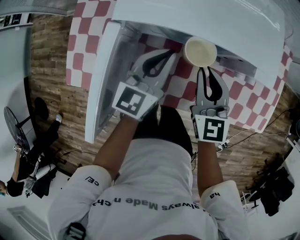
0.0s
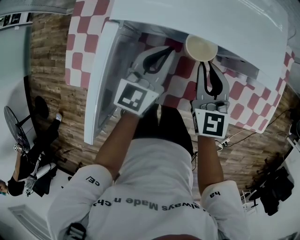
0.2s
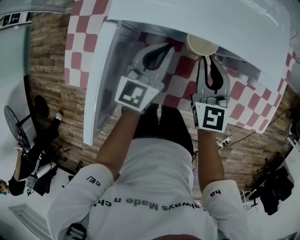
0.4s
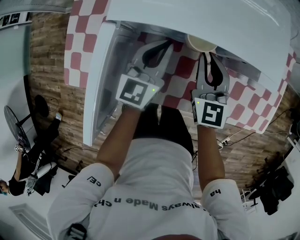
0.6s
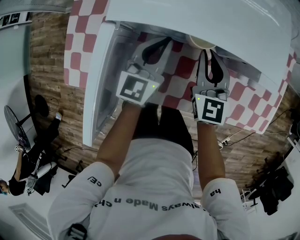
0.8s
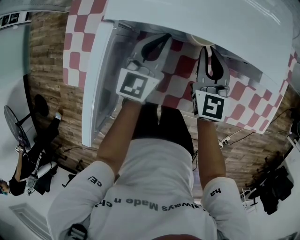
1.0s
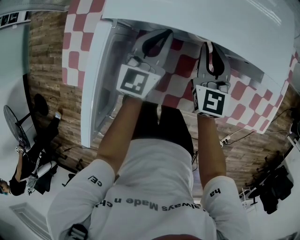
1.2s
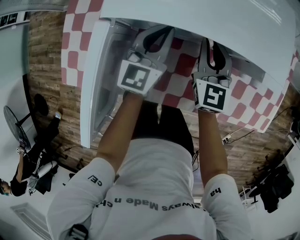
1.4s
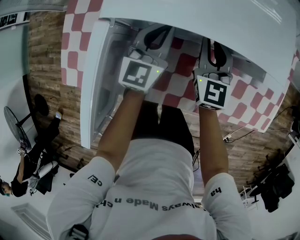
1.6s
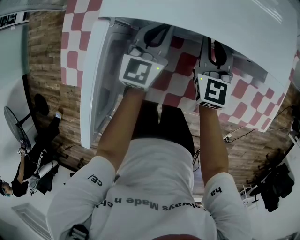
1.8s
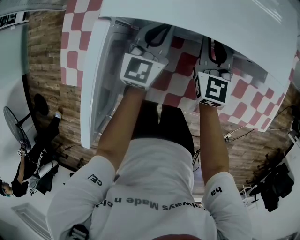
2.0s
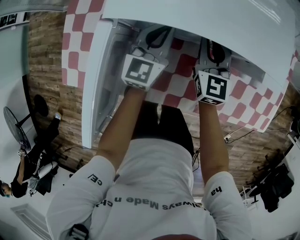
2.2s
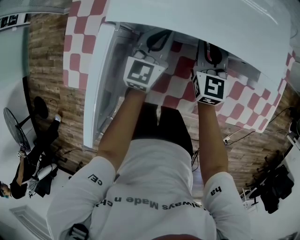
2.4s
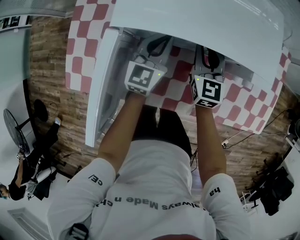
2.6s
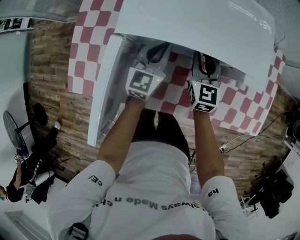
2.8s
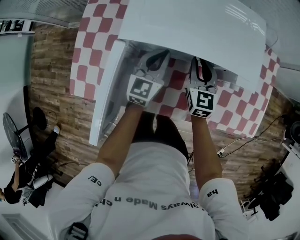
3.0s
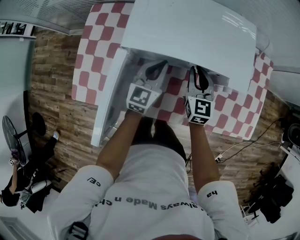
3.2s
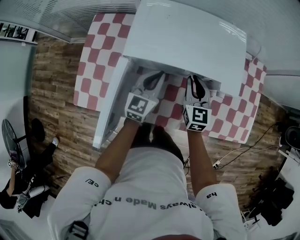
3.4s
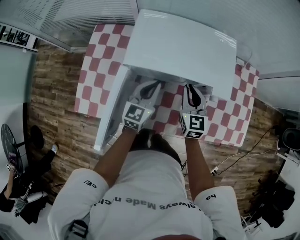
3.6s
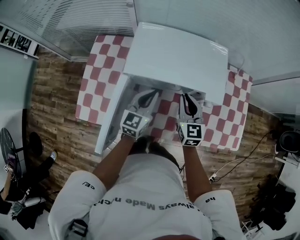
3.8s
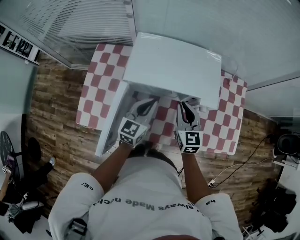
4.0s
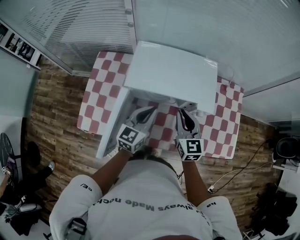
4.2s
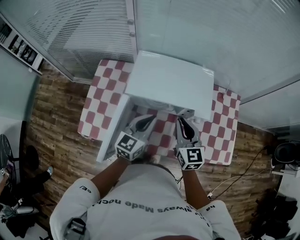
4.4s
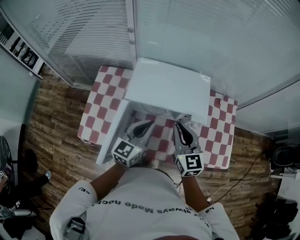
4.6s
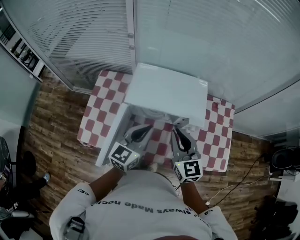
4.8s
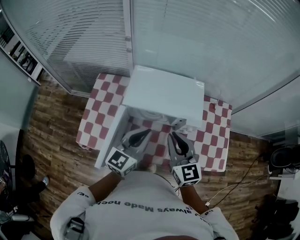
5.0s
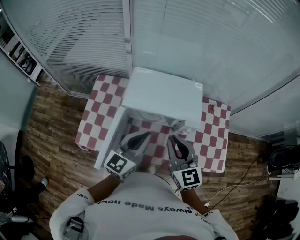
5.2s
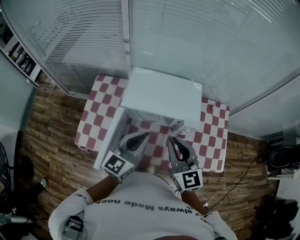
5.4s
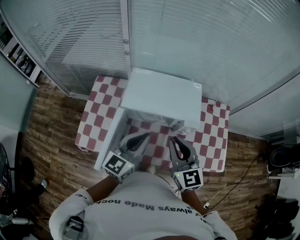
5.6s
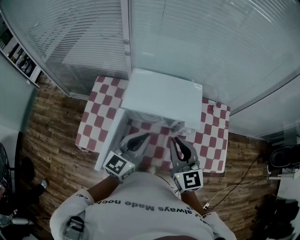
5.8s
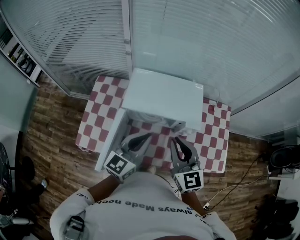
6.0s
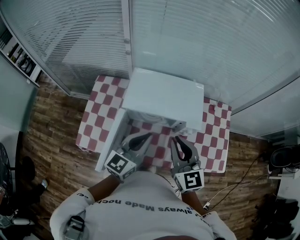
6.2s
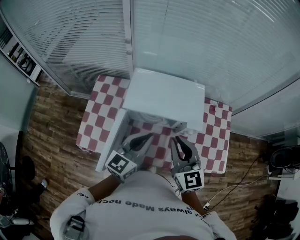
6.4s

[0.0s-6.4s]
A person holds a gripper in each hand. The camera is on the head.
0.0s to 1.6s: The two grippers go roughly 10 cm forward and downward.
1.6s to 3.2s: The right gripper shifts by about 5 cm. Meanwhile the left gripper travels upward by some 5 cm.
3.2s to 4.8s: Both grippers move upward and backward, some 30 cm.
4.8s to 6.4s: There are only small adjustments of the grippers.

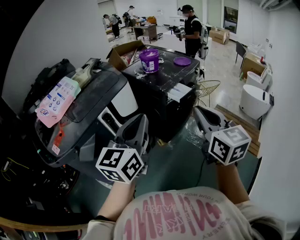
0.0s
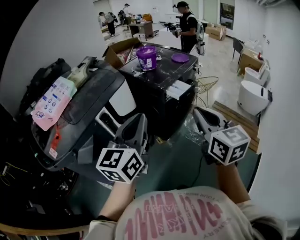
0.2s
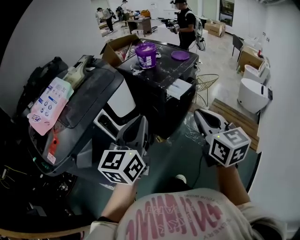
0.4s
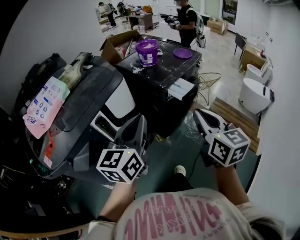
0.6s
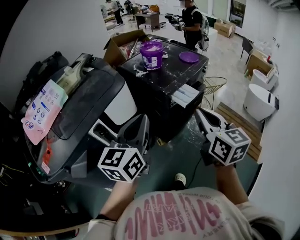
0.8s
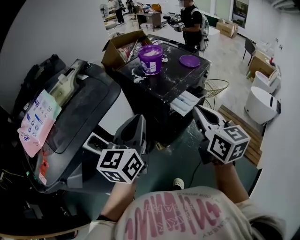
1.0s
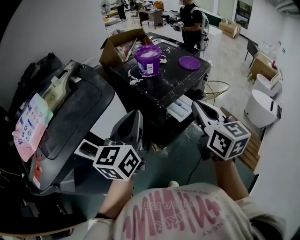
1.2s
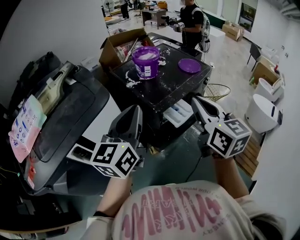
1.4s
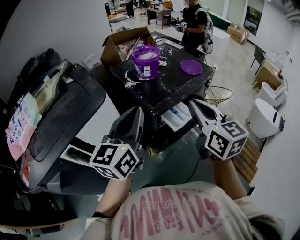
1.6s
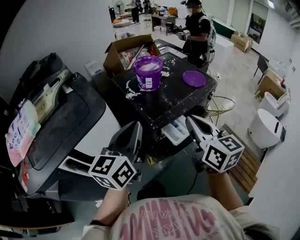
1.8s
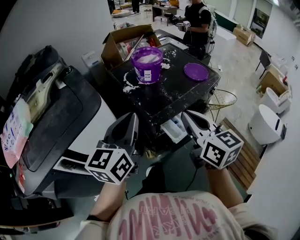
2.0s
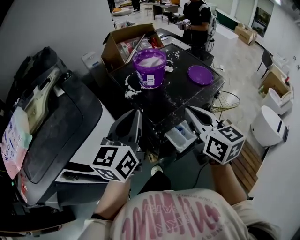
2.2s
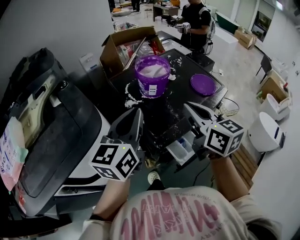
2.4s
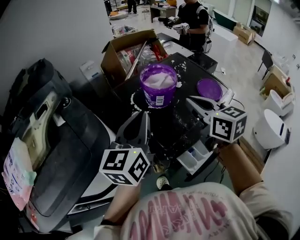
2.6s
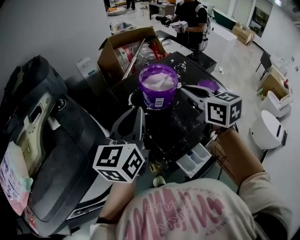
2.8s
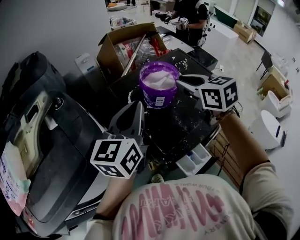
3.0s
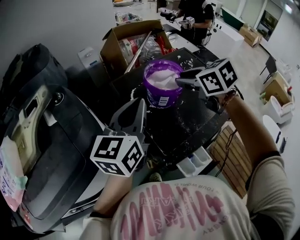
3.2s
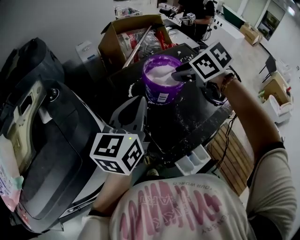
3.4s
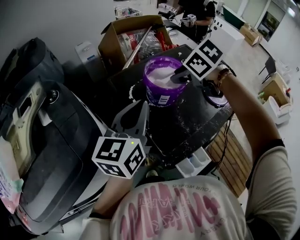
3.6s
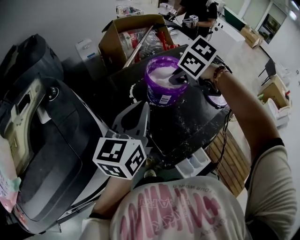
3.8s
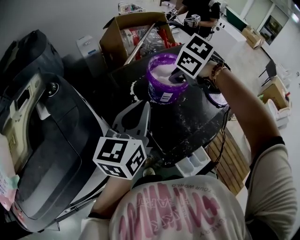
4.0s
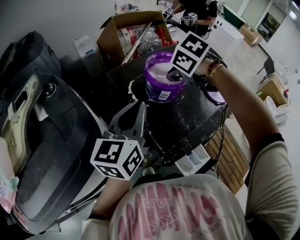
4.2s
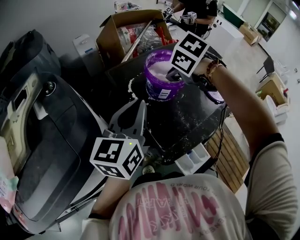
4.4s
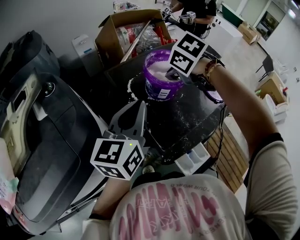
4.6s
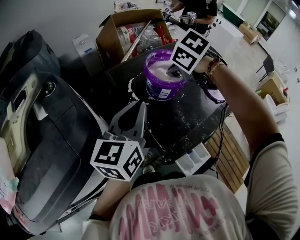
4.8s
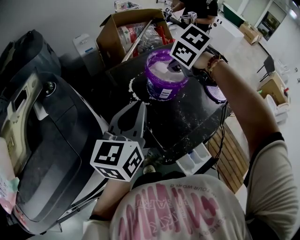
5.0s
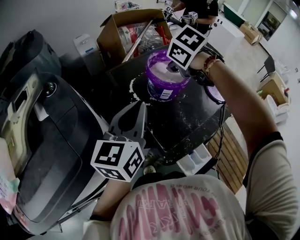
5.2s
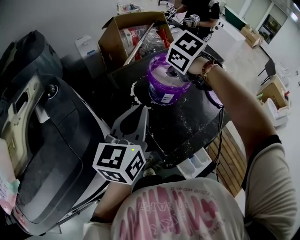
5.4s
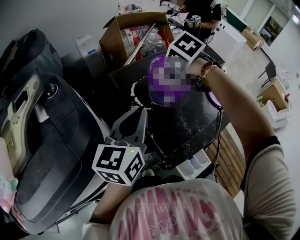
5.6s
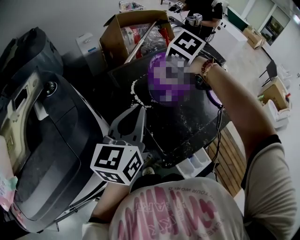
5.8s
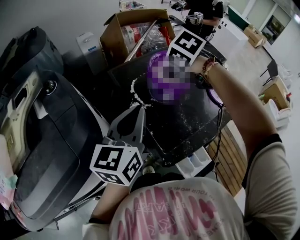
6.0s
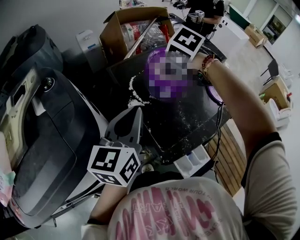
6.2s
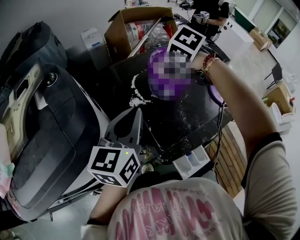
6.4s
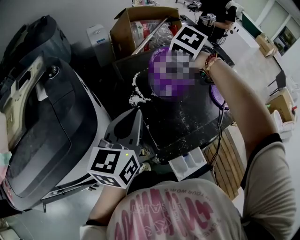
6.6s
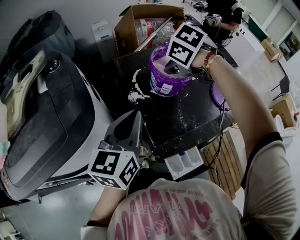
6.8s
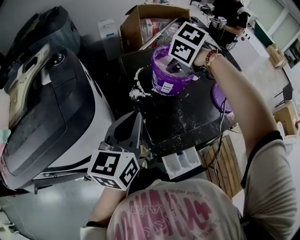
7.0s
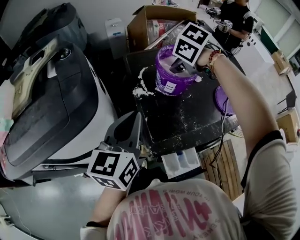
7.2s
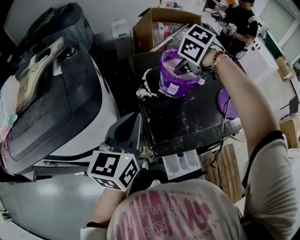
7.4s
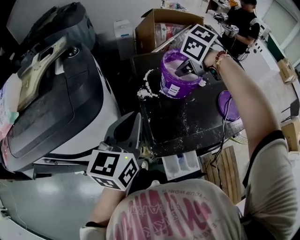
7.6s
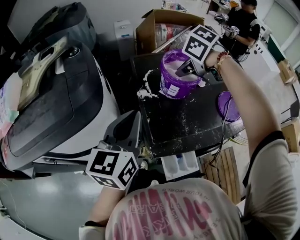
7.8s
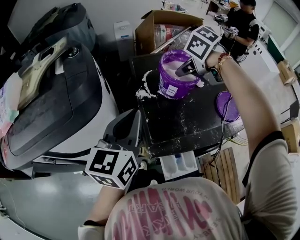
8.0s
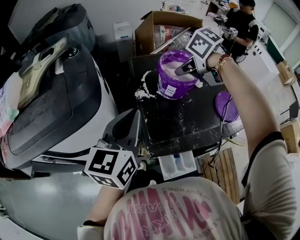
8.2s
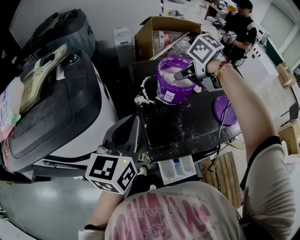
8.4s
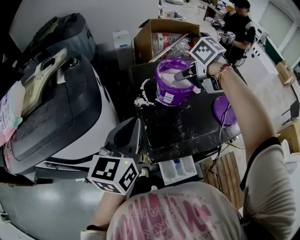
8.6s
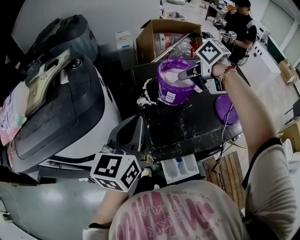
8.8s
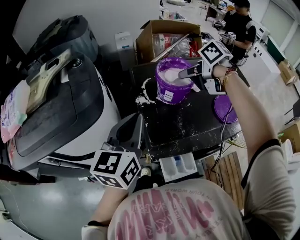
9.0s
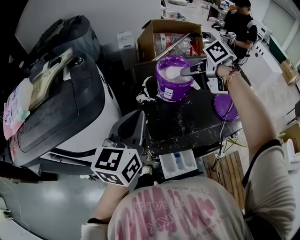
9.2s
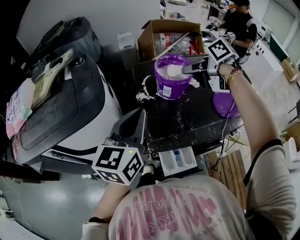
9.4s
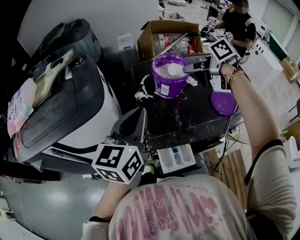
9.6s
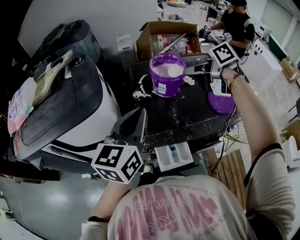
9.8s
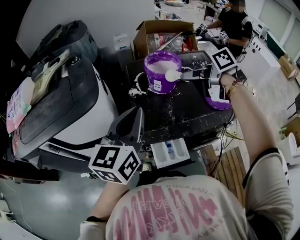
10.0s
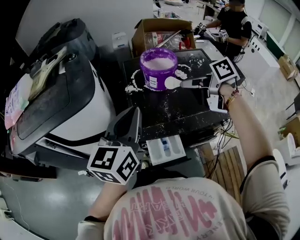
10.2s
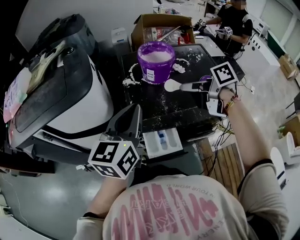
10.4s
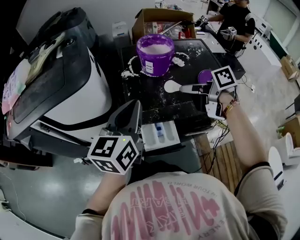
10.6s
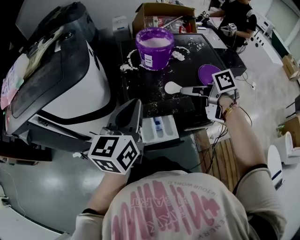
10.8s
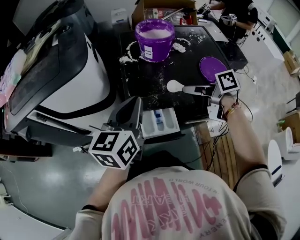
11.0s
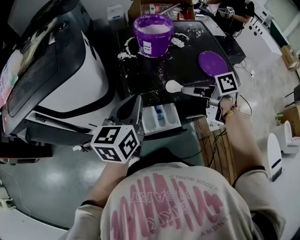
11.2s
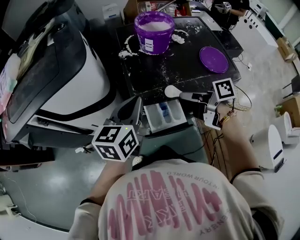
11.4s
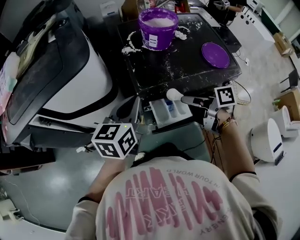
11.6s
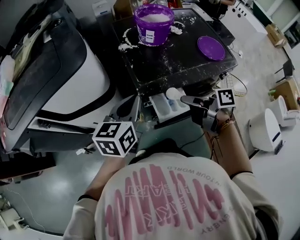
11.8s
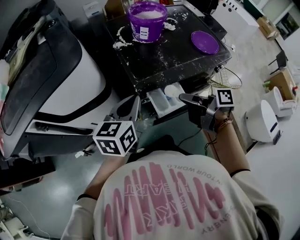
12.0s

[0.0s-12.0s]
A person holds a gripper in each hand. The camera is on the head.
0.0s to 1.6s: Both grippers move forward, approximately 30 cm.
1.6s to 3.0s: The two grippers go roughly 30 cm forward. The right gripper changes its angle by roughly 30 degrees.
3.0s to 4.4s: The right gripper shifts about 10 cm downward and forward, and tips its fingers downward by about 40 degrees.
4.4s to 6.0s: The grippers move only a little.
6.0s to 7.6s: The right gripper changes its angle by about 20 degrees, while the left gripper ends up about 10 cm from where it was.
7.6s to 9.0s: The right gripper moves roughly 5 cm, and rotates some 30 degrees.
9.0s to 10.4s: The left gripper moves backward, about 10 cm. Meanwhile the right gripper goes about 20 cm backward, and turns by about 20 degrees.
10.4s to 12.0s: The left gripper moves downward and to the left, about 15 cm, and turns by approximately 20 degrees, while the right gripper shifts roughly 20 cm backward, downward and to the left, and changes its angle by approximately 40 degrees.

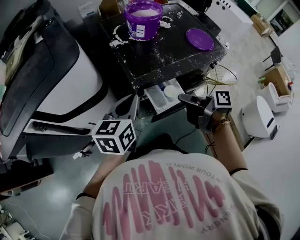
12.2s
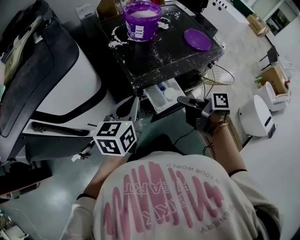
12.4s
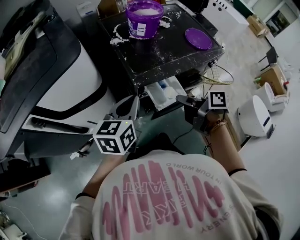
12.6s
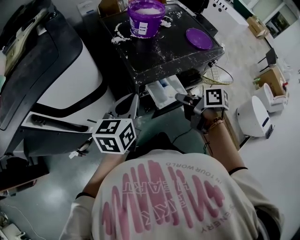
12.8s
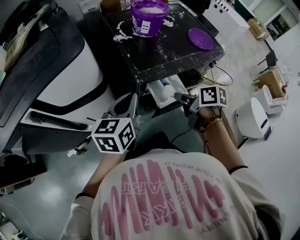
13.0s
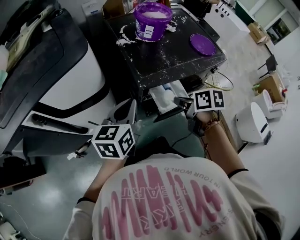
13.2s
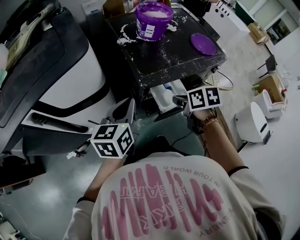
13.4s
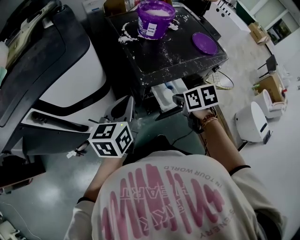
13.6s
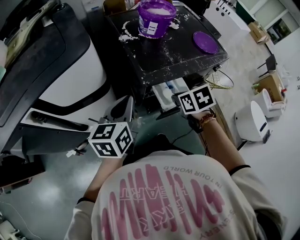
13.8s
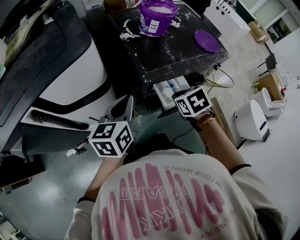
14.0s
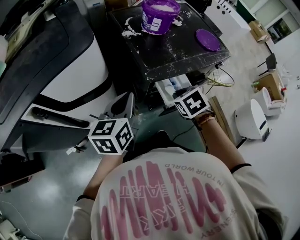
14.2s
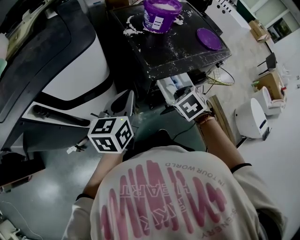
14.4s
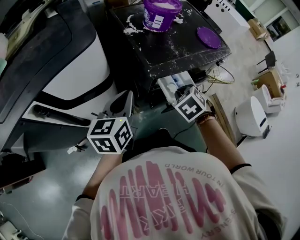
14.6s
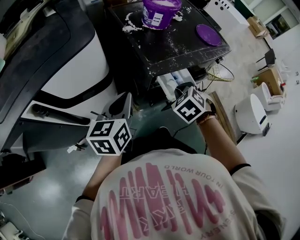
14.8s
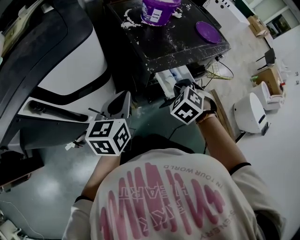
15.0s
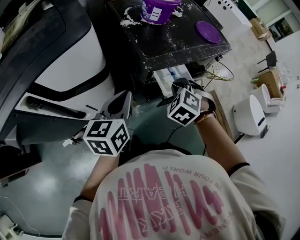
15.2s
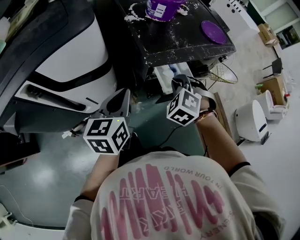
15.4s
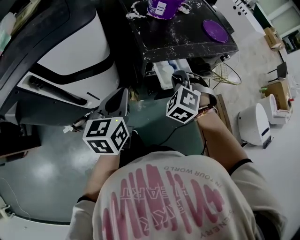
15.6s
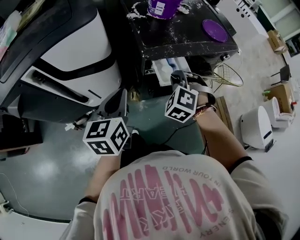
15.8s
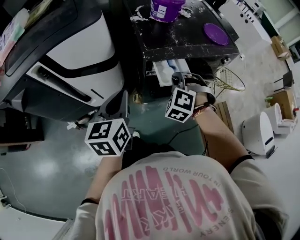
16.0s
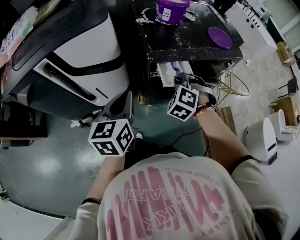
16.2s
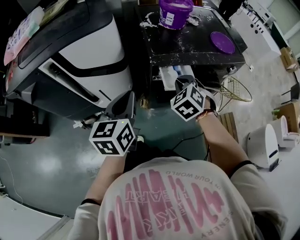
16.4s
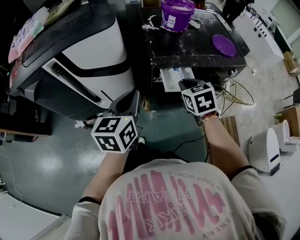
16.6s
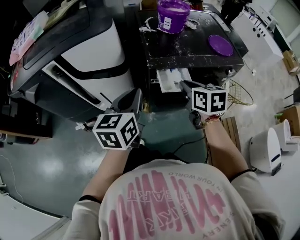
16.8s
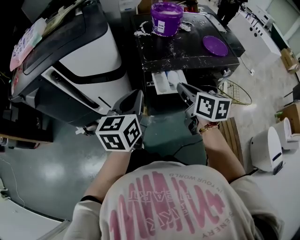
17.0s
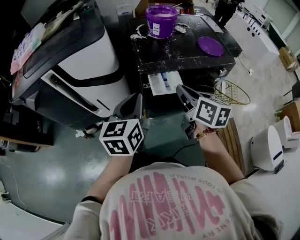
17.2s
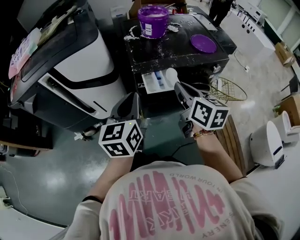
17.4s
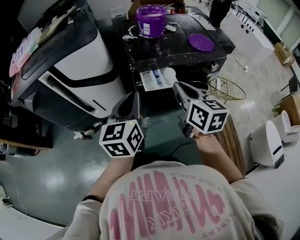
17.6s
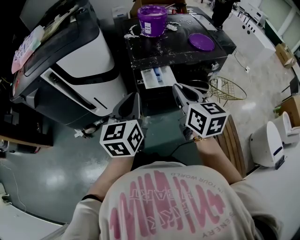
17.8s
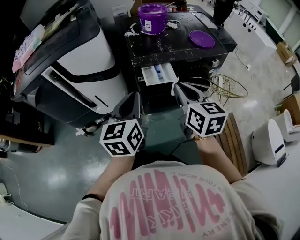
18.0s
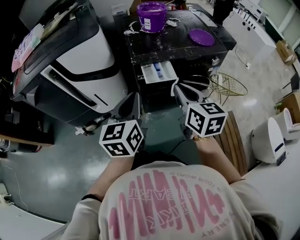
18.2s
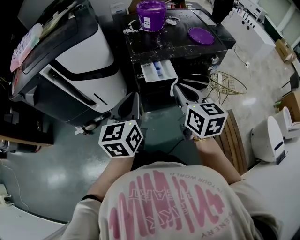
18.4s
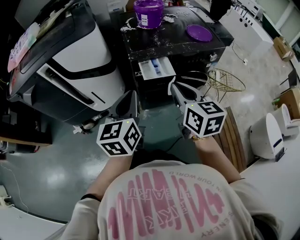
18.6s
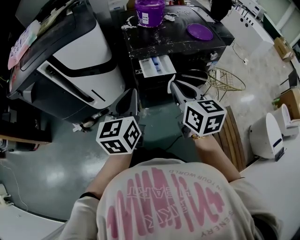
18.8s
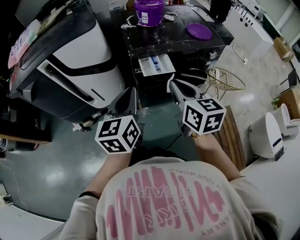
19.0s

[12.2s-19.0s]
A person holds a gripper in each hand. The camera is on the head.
12.2s to 13.6s: The right gripper moves approximately 5 cm, and points its fingers roughly 40 degrees further downward. Meanwhile the left gripper travels to the left by roughly 5 cm.
13.6s to 15.0s: The right gripper rolls counterclockwise, seen from behind, by approximately 50 degrees.
15.0s to 16.2s: The right gripper swivels about 30 degrees. The left gripper is displaced backward and to the right by approximately 10 cm.
16.2s to 17.6s: The left gripper is displaced to the right and upward by about 10 cm. Meanwhile the right gripper travels upward, backward and to the right by about 20 cm, and twists roughly 80 degrees clockwise, seen from behind.
17.6s to 19.0s: The right gripper moves backward, roughly 5 cm.
